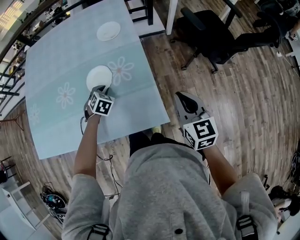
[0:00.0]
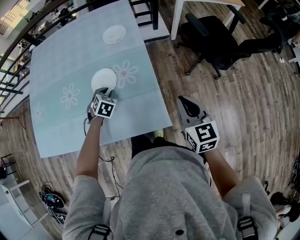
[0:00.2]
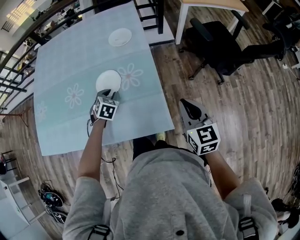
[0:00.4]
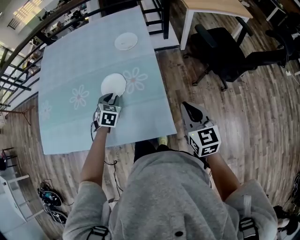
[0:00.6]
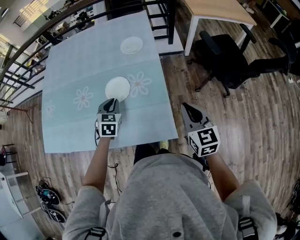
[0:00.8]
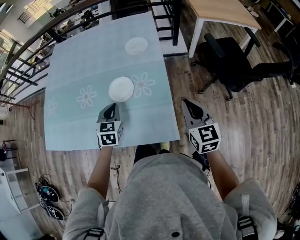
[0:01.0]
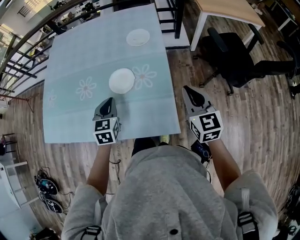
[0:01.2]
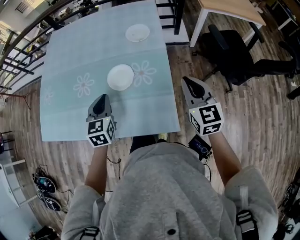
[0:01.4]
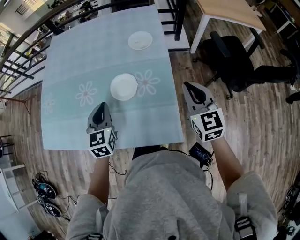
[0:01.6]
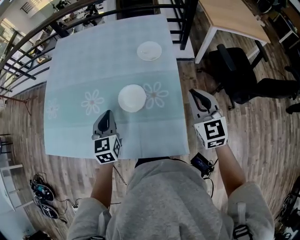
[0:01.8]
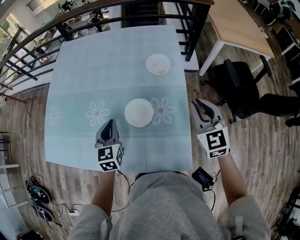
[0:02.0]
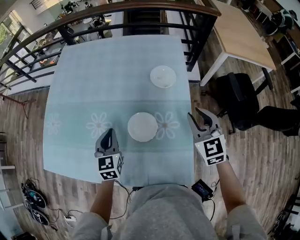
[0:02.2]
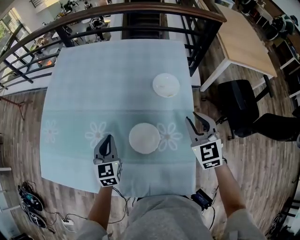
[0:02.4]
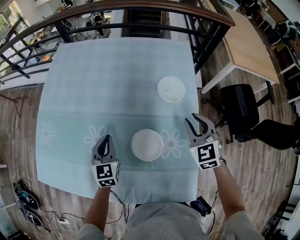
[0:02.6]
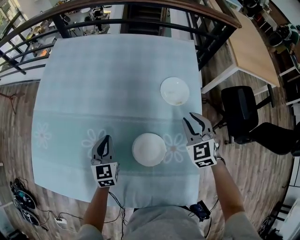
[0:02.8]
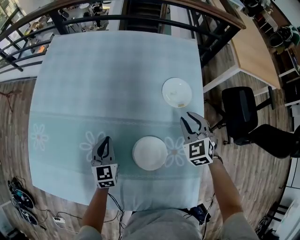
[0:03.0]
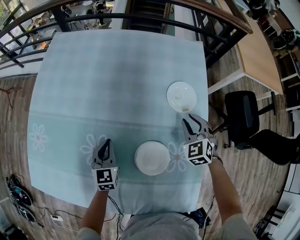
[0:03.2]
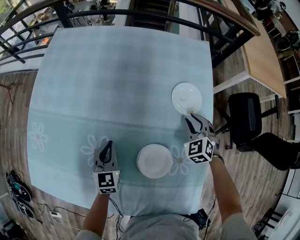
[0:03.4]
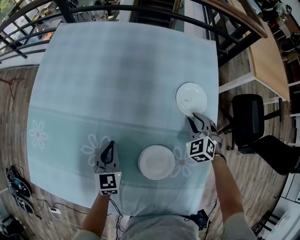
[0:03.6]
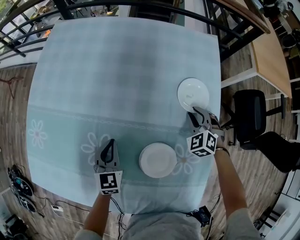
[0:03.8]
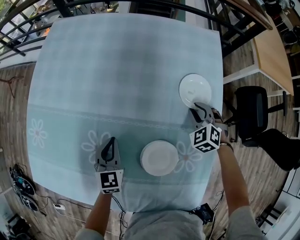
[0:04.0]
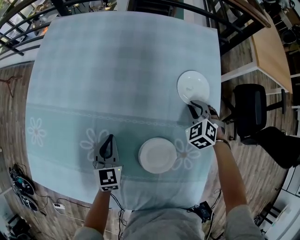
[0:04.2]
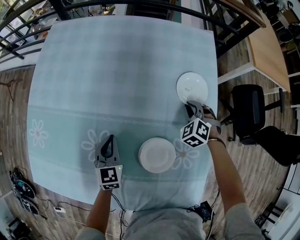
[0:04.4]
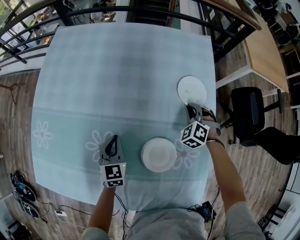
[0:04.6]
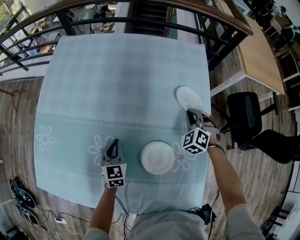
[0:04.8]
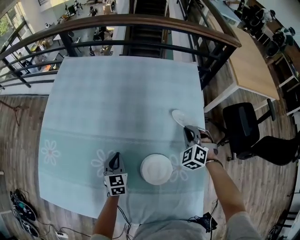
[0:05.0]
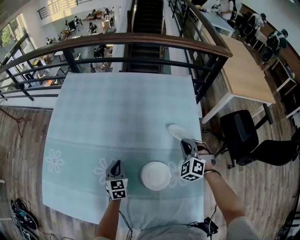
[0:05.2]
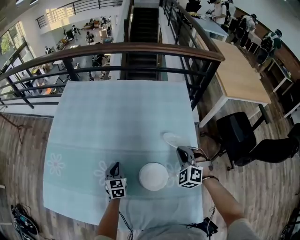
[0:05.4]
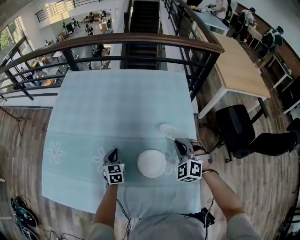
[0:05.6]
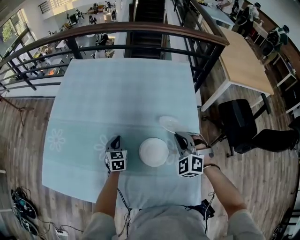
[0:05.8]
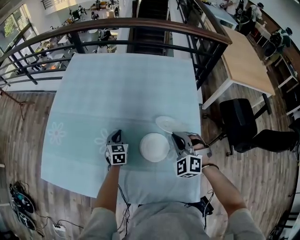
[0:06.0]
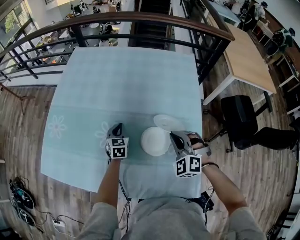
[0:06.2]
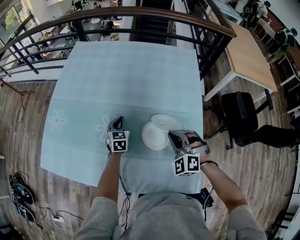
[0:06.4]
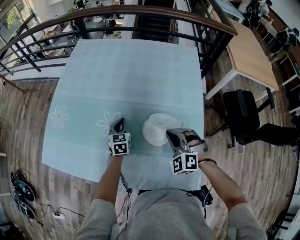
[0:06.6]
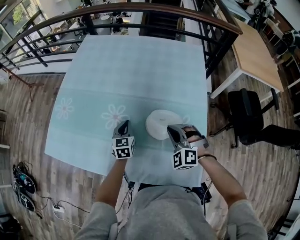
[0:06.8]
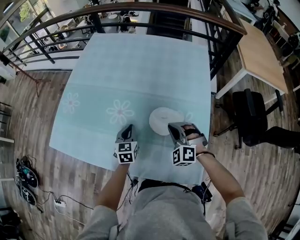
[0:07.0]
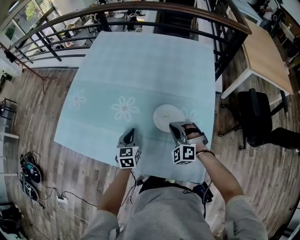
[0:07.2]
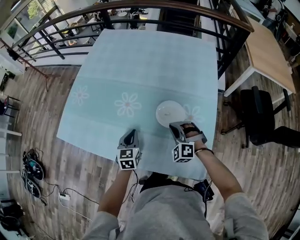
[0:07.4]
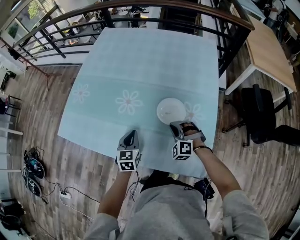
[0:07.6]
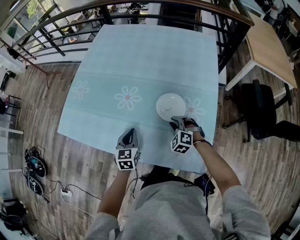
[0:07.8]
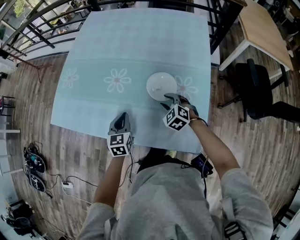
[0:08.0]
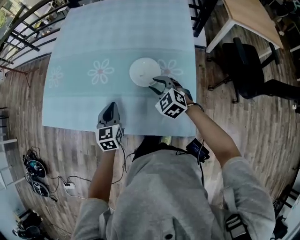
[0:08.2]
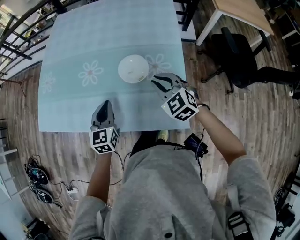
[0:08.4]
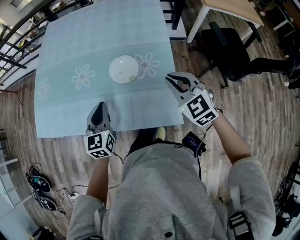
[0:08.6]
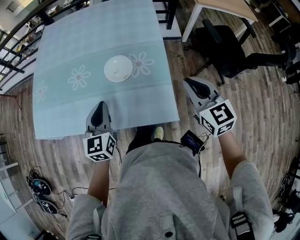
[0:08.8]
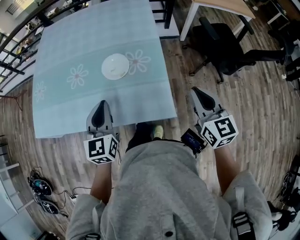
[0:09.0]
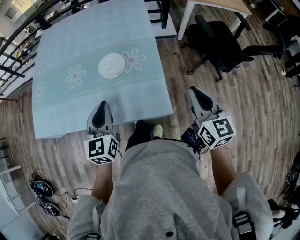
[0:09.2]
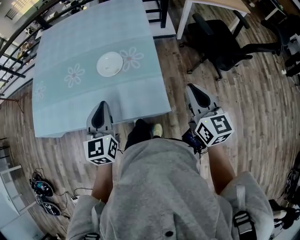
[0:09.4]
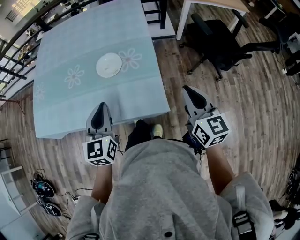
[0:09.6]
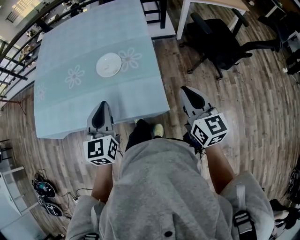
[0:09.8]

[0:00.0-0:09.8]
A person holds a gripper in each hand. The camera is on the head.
0:00.0 to 0:01.4: The left gripper travels upward by some 20 cm, and tilts its fingers approximately 30 degrees upward, while the right gripper shifts approximately 10 cm forward and upward.
0:01.4 to 0:02.8: The left gripper is displaced forward, to the left and downward by roughly 25 cm, while the right gripper shifts approximately 30 cm forward, and swivels approximately 30 degrees.
0:02.8 to 0:04.2: The left gripper ends up approximately 5 cm from where it was. Meanwhile the right gripper travels downward and forward by roughly 15 cm, and rotates approximately 30 degrees.
0:04.2 to 0:05.6: The right gripper goes roughly 20 cm upward and backward, and swivels about 20 degrees.
0:05.6 to 0:07.0: The left gripper shifts some 15 cm backward; the right gripper moves backward and to the left, some 15 cm.
0:07.0 to 0:08.4: The left gripper travels backward and upward by approximately 15 cm. The right gripper travels backward and upward by approximately 10 cm, and changes its angle by about 40 degrees.
0:08.4 to 0:09.8: The grippers both shift to the right, backward and upward by about 25 cm. The right gripper rotates around the line of its fingers by some 40 degrees, clockwise from behind.

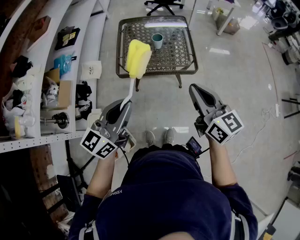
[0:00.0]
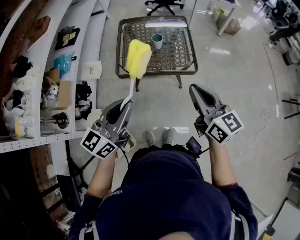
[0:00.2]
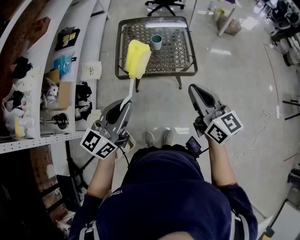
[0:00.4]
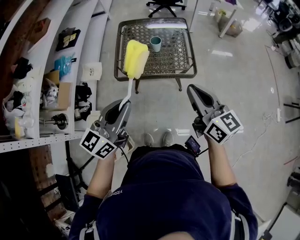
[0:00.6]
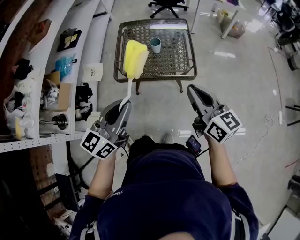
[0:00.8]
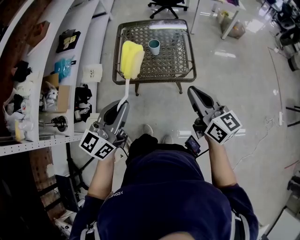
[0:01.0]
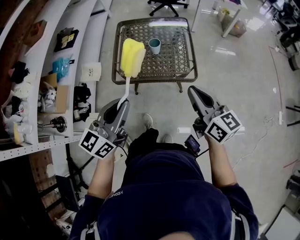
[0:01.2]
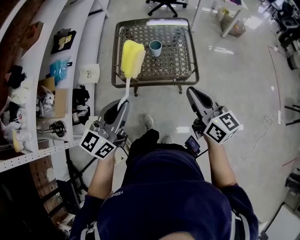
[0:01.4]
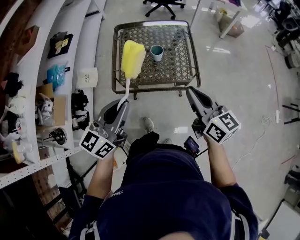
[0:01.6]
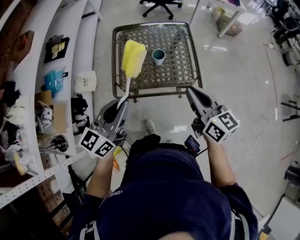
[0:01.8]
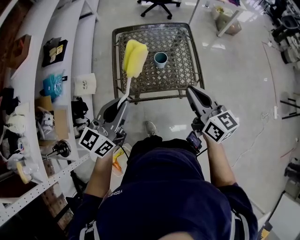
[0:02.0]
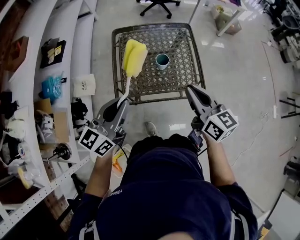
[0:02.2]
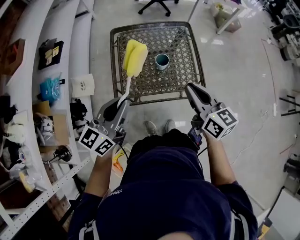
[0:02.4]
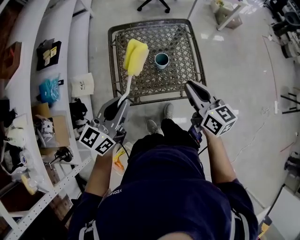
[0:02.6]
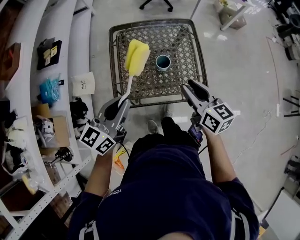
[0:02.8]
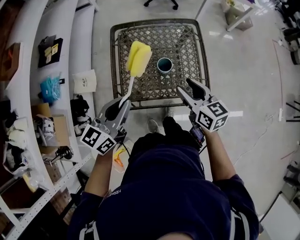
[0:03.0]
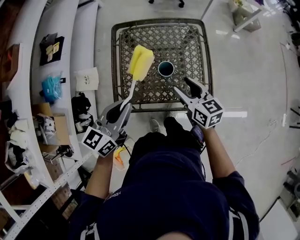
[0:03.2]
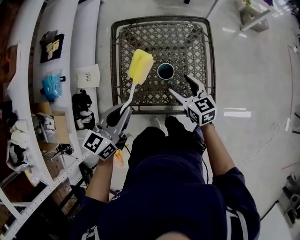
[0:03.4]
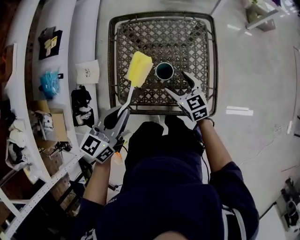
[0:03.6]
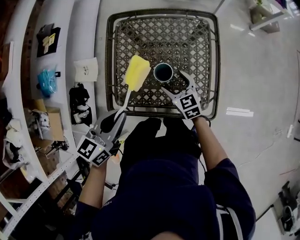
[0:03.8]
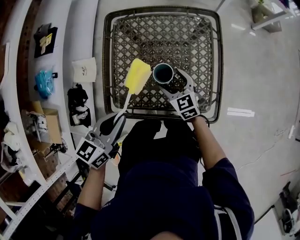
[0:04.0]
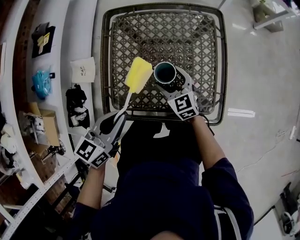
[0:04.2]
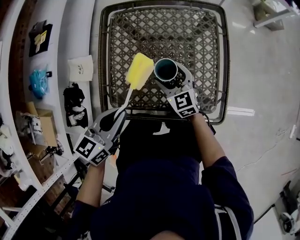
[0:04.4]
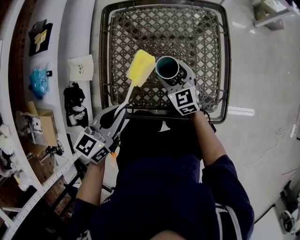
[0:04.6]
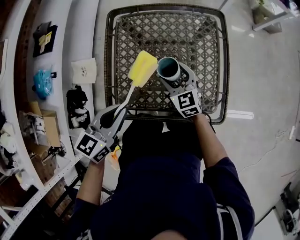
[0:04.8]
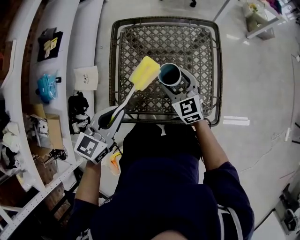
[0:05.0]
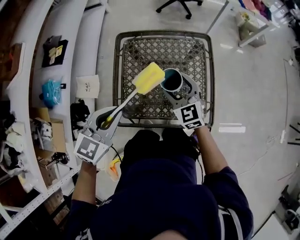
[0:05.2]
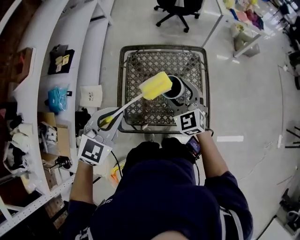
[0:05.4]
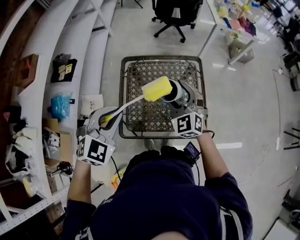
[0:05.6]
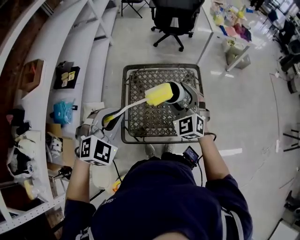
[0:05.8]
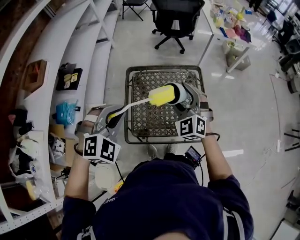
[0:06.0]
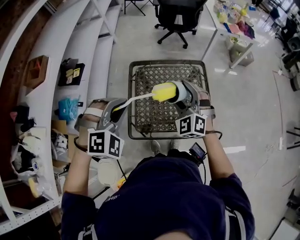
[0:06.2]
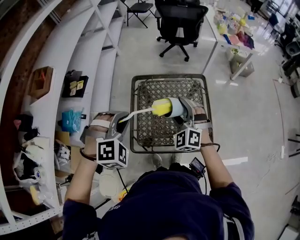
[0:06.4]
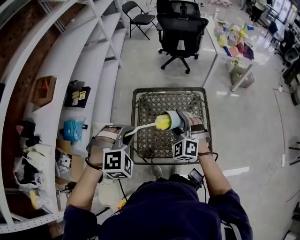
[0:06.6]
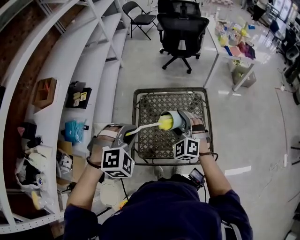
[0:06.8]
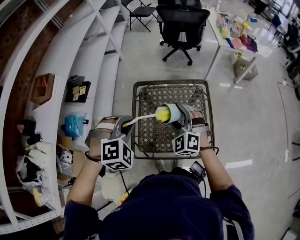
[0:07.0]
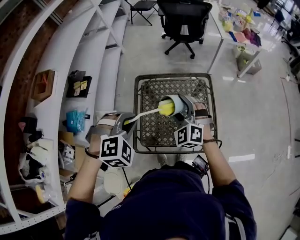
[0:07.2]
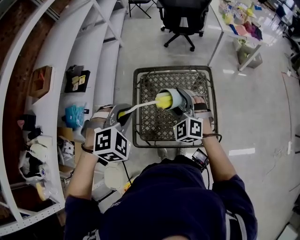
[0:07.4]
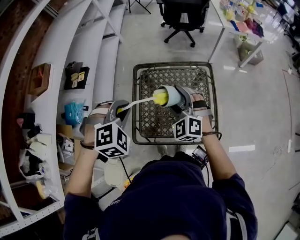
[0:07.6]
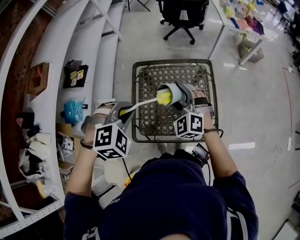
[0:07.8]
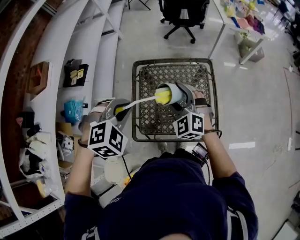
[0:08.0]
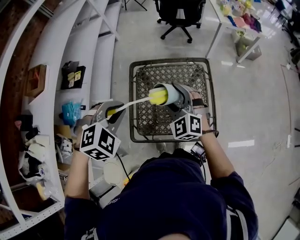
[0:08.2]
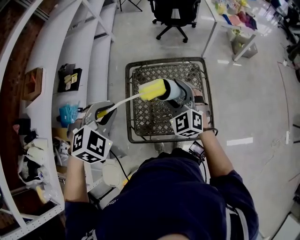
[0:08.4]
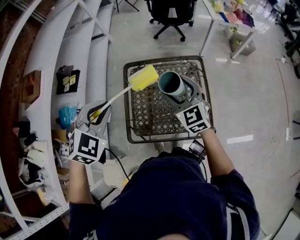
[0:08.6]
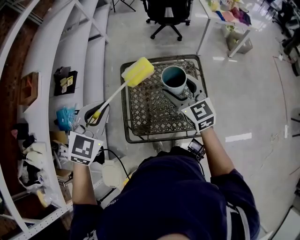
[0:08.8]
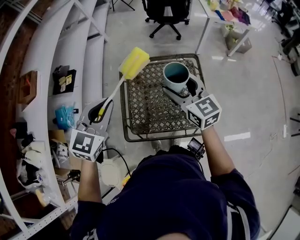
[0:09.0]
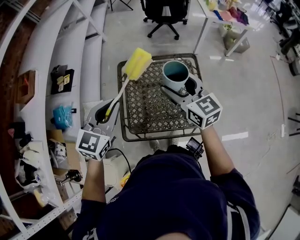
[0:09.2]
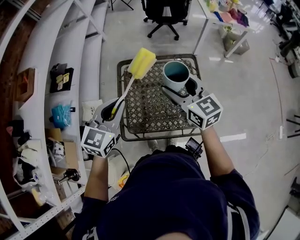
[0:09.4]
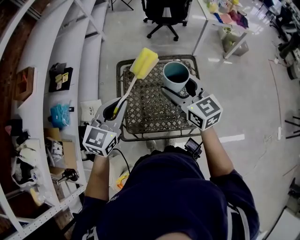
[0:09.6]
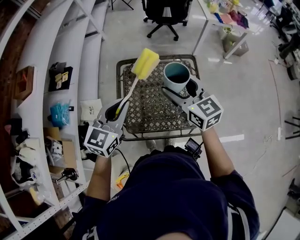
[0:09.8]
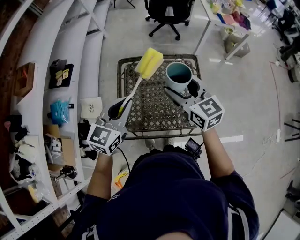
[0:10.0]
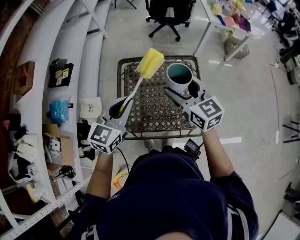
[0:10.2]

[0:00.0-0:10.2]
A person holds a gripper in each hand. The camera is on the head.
0:00.0 to 0:01.4: The grippers both shift forward by some 10 cm.
0:01.4 to 0:03.0: The left gripper moves forward, roughly 20 cm. The right gripper goes approximately 25 cm forward and downward, and opens.
0:03.0 to 0:04.4: The right gripper heads downward and forward, covering roughly 30 cm, swivels some 30 degrees, and opens its fingers, while the left gripper moves downward, some 20 cm.
0:04.4 to 0:05.8: The two grippers go approximately 30 cm upward. The right gripper turns by some 40 degrees; the left gripper twists some 70 degrees clockwise, seen from behind.
0:05.8 to 0:07.2: The left gripper rotates approximately 20 degrees.
0:07.2 to 0:08.8: The left gripper shifts roughly 5 cm upward, and changes its angle by roughly 40 degrees, while the right gripper moves about 5 cm, and rolls clockwise, seen from behind, by roughly 50 degrees.
0:08.8 to 0:10.2: The left gripper travels downward and to the right by roughly 10 cm, and turns by approximately 30 degrees.

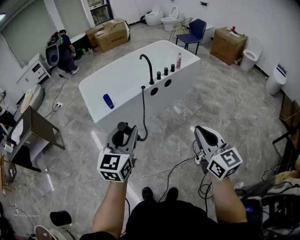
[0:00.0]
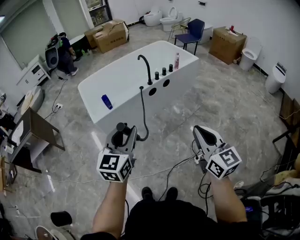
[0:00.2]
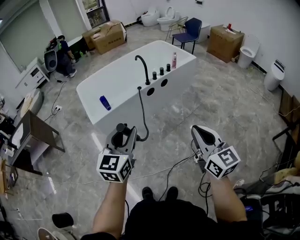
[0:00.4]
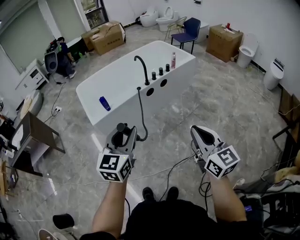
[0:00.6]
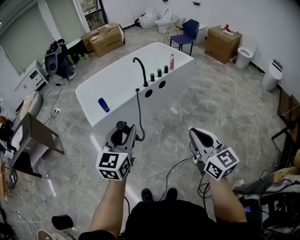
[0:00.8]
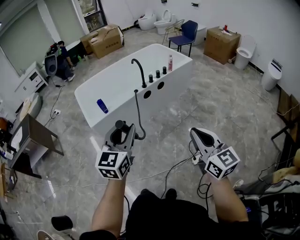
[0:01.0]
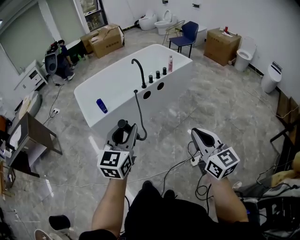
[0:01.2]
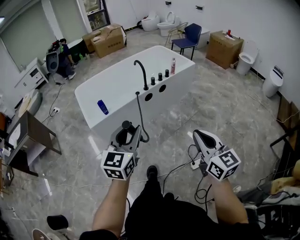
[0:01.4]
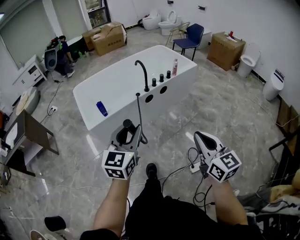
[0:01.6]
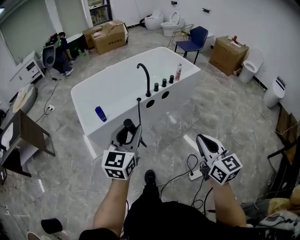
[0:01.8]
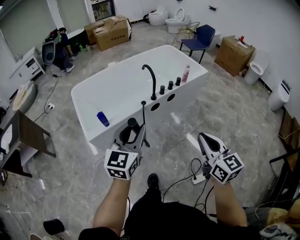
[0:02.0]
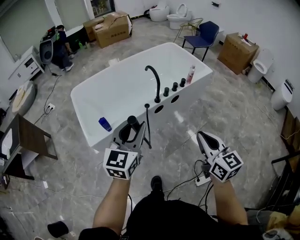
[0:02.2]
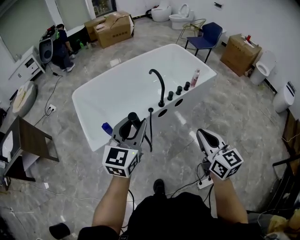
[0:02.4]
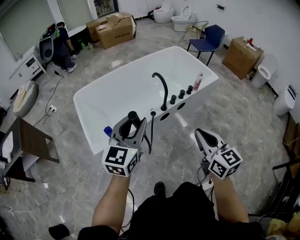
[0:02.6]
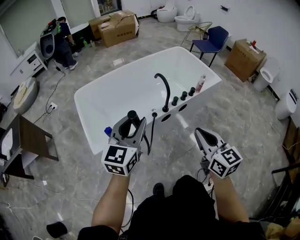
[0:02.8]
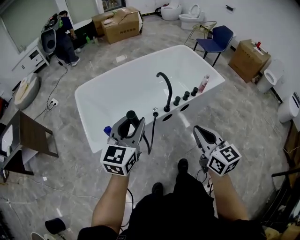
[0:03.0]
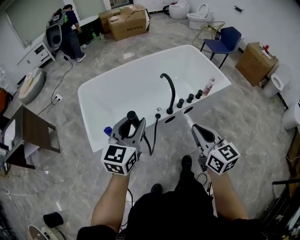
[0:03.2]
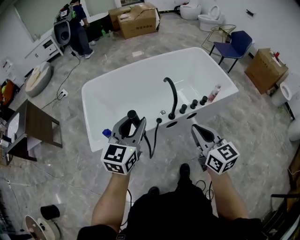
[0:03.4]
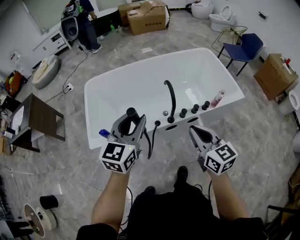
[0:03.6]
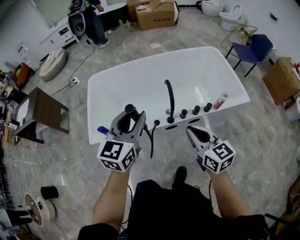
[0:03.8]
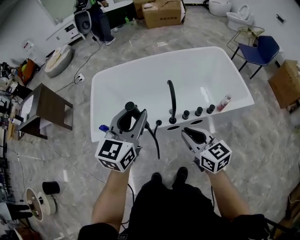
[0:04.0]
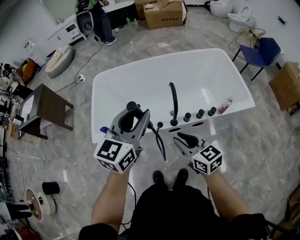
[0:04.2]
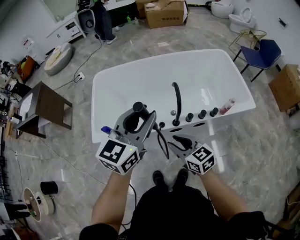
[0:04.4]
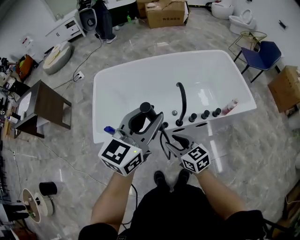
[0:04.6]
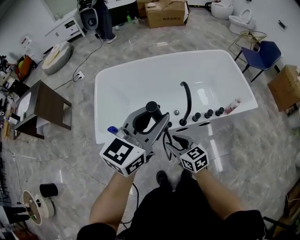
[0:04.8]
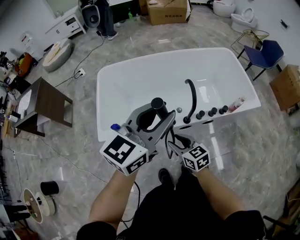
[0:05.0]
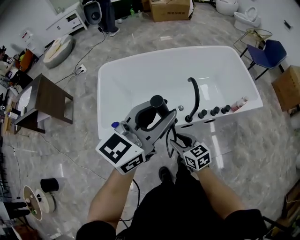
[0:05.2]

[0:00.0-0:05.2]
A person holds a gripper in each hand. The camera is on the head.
0:00.0 to 0:01.8: The grippers both shift forward by about 10 cm.
0:01.8 to 0:03.4: The grippers both shift forward by some 35 cm.
0:03.4 to 0:05.2: The right gripper shifts about 20 cm downward and to the left, swivels roughly 30 degrees, and opens its fingers; the left gripper heads upward, covering some 10 cm.
